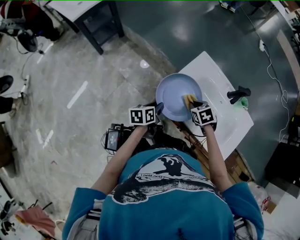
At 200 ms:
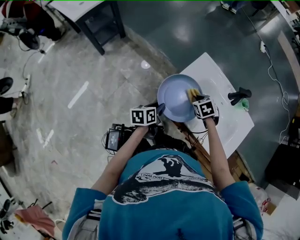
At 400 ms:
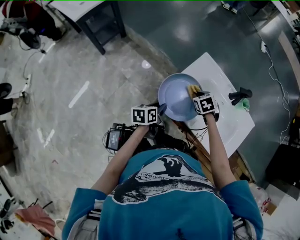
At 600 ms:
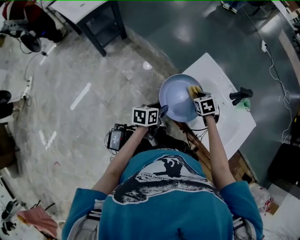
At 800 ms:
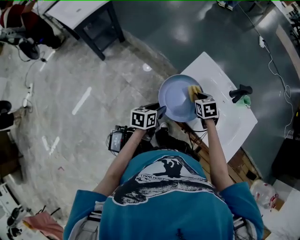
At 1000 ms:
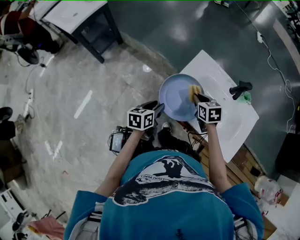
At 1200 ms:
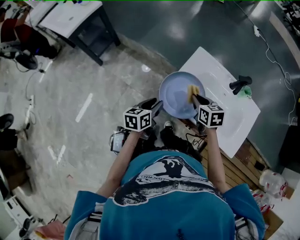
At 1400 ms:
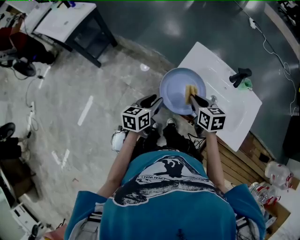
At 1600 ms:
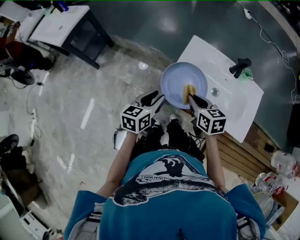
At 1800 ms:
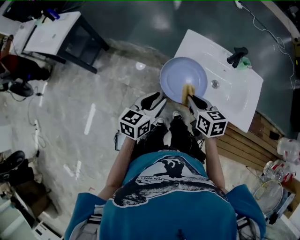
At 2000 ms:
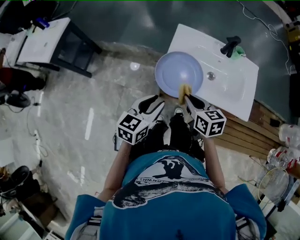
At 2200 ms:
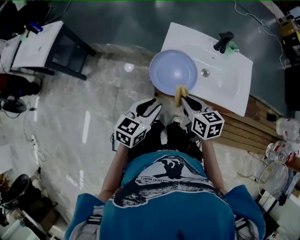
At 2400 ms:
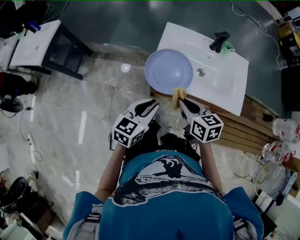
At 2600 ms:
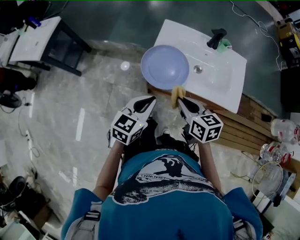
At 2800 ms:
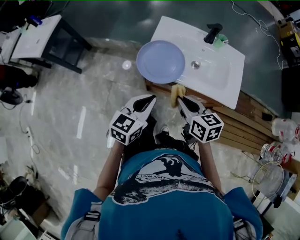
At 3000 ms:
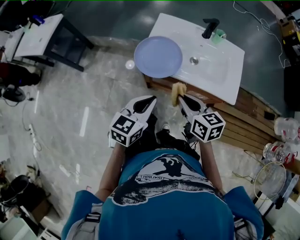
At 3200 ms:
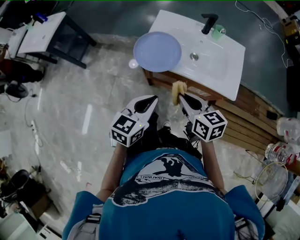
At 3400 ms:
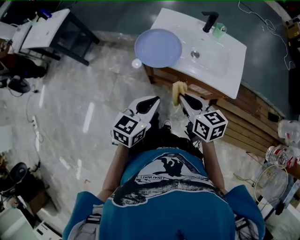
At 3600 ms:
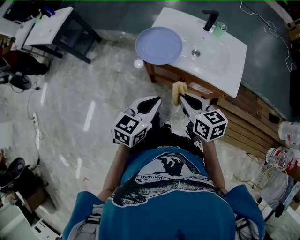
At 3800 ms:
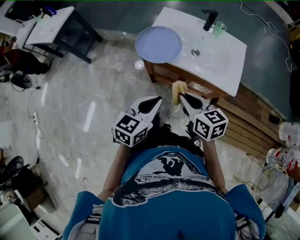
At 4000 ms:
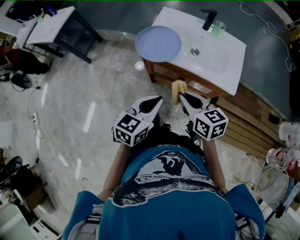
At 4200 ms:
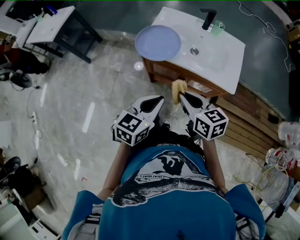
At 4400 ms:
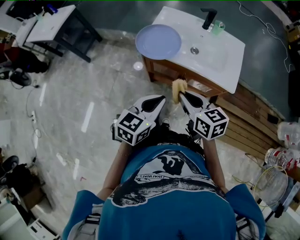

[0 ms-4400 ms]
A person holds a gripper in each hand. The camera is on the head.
0 ms to 1400 ms: The right gripper is displaced upward and to the left by about 10 cm, and turns by about 40 degrees. Meanwhile the left gripper goes approximately 10 cm upward, and rotates some 20 degrees.
1400 ms to 3000 ms: The right gripper heads backward, covering roughly 20 cm. Meanwhile the left gripper is displaced backward, to the right and upward by roughly 20 cm, changes its angle by approximately 30 degrees, and closes its fingers.
3000 ms to 4400 ms: The right gripper goes about 10 cm backward. Meanwhile the left gripper heads backward and to the right, covering roughly 10 cm.

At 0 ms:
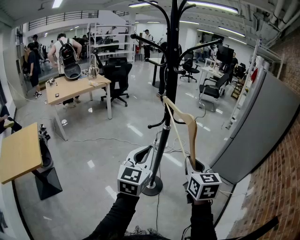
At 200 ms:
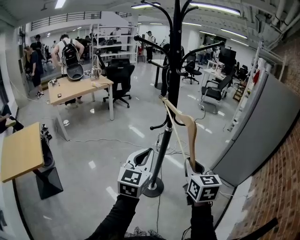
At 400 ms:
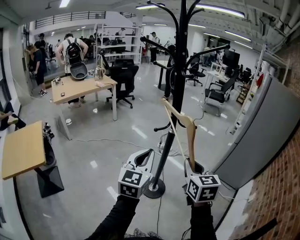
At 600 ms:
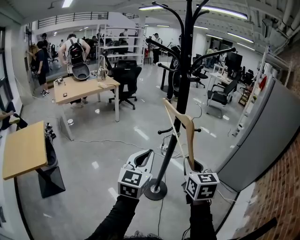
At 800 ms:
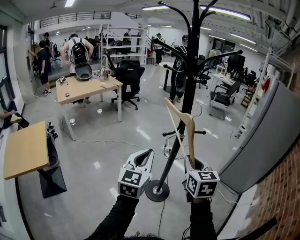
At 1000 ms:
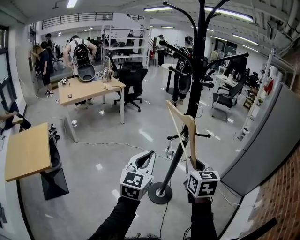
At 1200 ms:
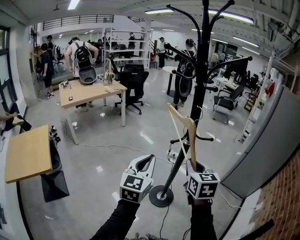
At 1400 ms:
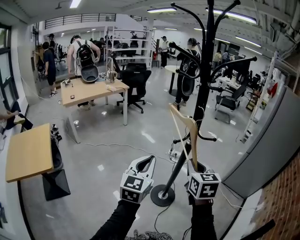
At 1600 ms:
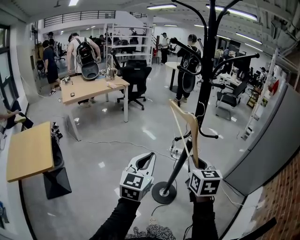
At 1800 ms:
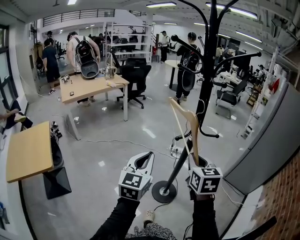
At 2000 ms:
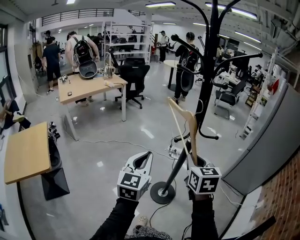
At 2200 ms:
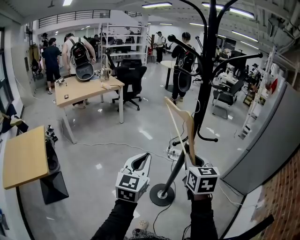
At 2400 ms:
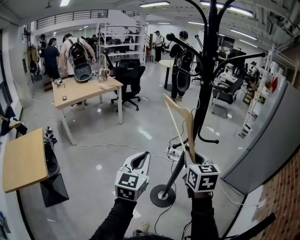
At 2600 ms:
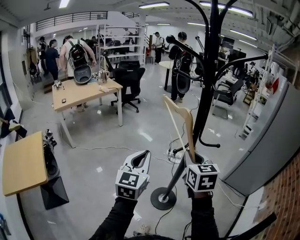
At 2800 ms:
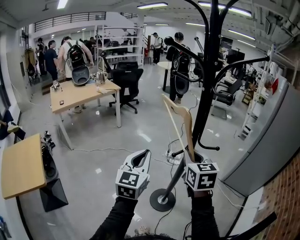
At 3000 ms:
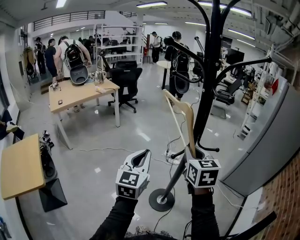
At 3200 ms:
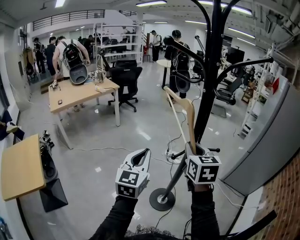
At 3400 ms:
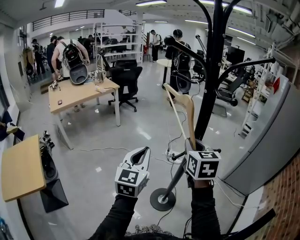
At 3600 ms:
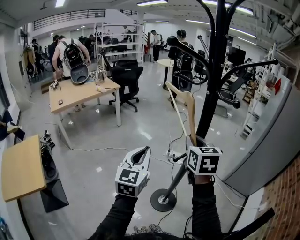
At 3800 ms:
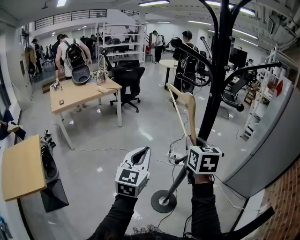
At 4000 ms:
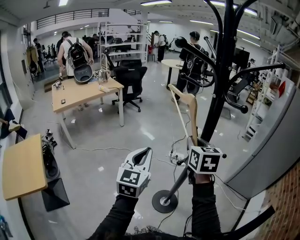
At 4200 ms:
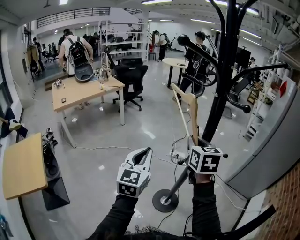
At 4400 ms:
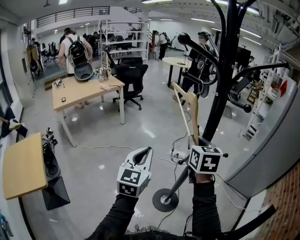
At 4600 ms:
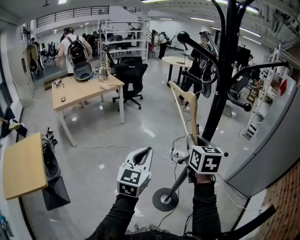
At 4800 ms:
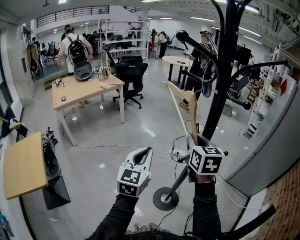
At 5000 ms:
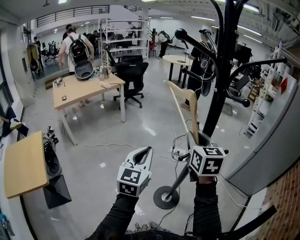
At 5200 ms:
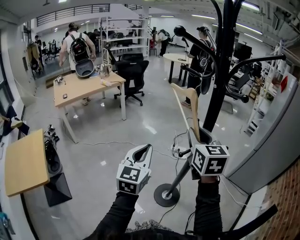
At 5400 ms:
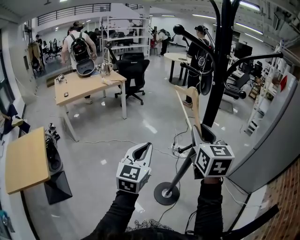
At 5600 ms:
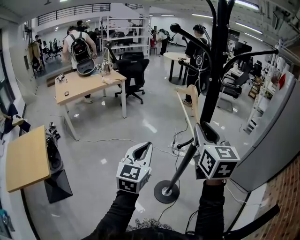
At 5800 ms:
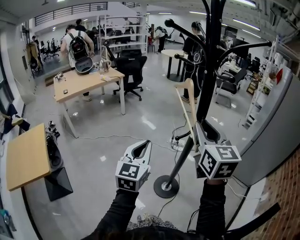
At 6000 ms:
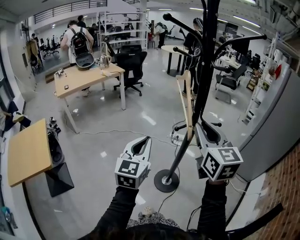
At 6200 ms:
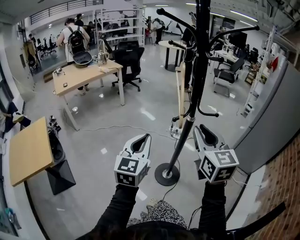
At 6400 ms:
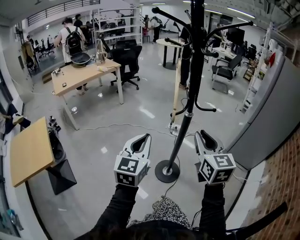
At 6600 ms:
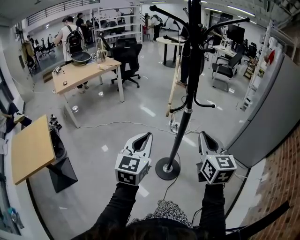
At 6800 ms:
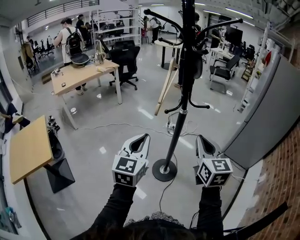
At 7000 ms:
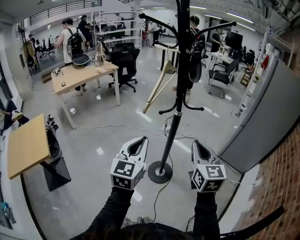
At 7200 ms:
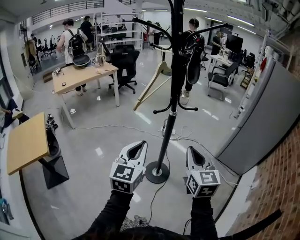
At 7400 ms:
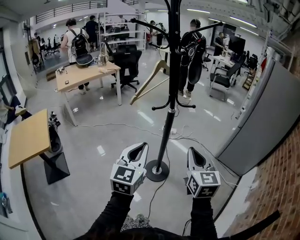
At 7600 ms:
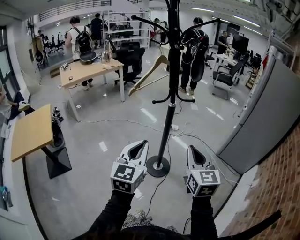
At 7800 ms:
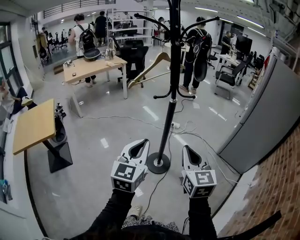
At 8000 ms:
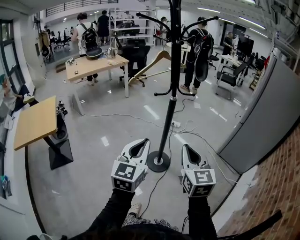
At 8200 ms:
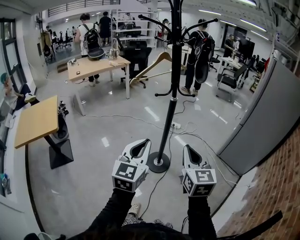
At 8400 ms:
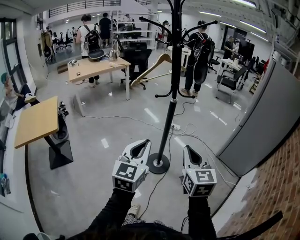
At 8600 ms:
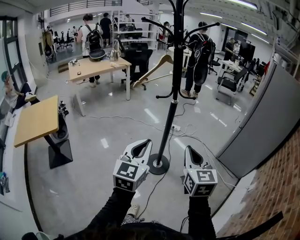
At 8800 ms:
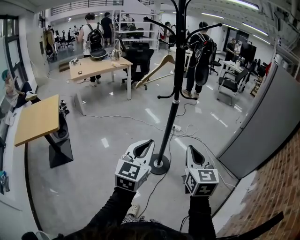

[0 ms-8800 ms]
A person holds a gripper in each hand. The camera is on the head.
0 ms to 1400 ms: The left gripper goes roughly 10 cm to the left; the right gripper moves to the left and forward, about 15 cm.
1400 ms to 3000 ms: The two grippers go approximately 15 cm forward.
3000 ms to 4400 ms: The right gripper is displaced forward by roughly 10 cm.
4400 ms to 5800 ms: The left gripper shifts some 10 cm backward. Meanwhile the right gripper is displaced backward and upward by roughly 15 cm.
5800 ms to 7400 ms: The right gripper goes approximately 25 cm backward, to the right and downward. The left gripper heads backward and to the right, covering about 25 cm.
7400 ms to 8800 ms: Both grippers move backward, about 10 cm.

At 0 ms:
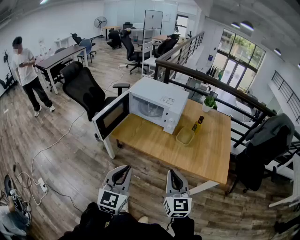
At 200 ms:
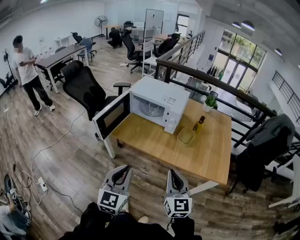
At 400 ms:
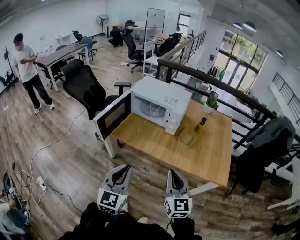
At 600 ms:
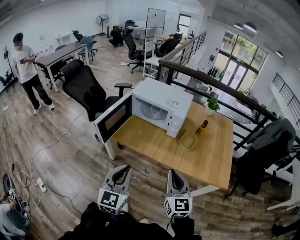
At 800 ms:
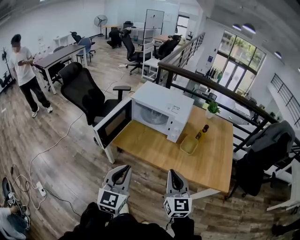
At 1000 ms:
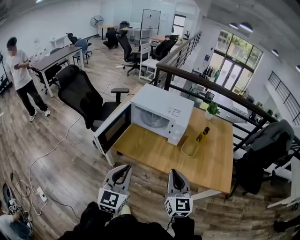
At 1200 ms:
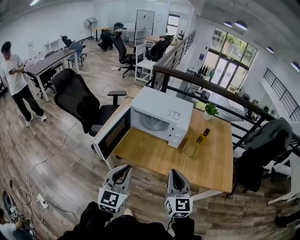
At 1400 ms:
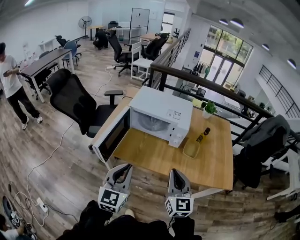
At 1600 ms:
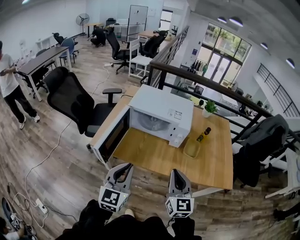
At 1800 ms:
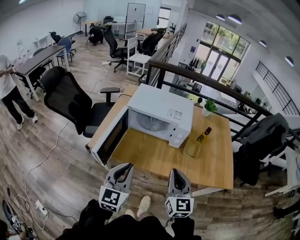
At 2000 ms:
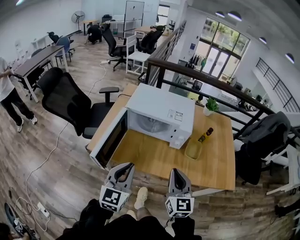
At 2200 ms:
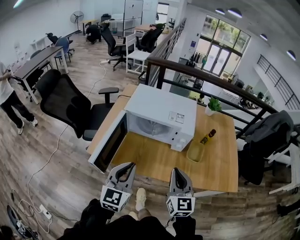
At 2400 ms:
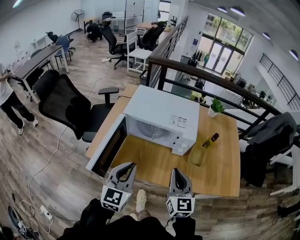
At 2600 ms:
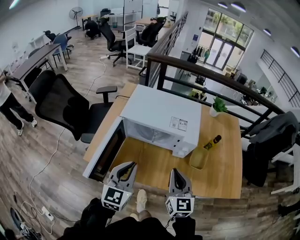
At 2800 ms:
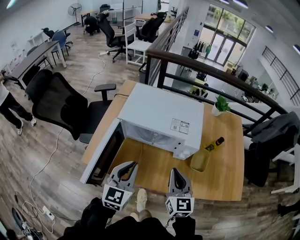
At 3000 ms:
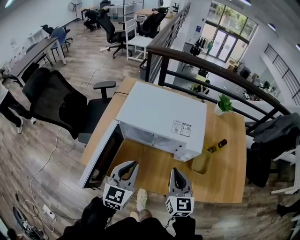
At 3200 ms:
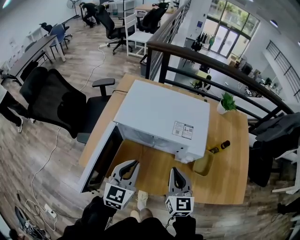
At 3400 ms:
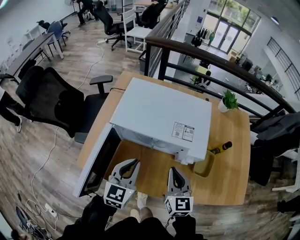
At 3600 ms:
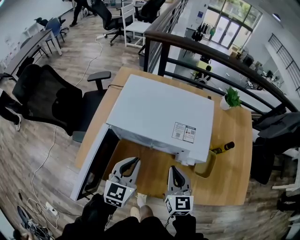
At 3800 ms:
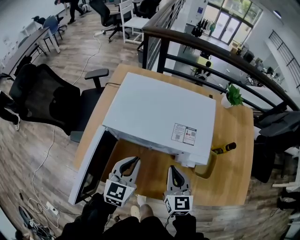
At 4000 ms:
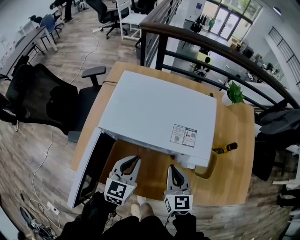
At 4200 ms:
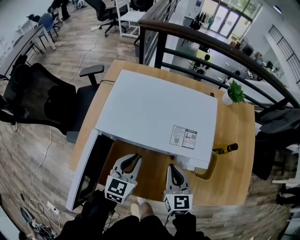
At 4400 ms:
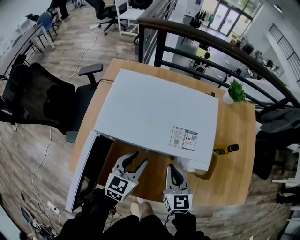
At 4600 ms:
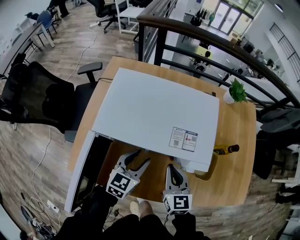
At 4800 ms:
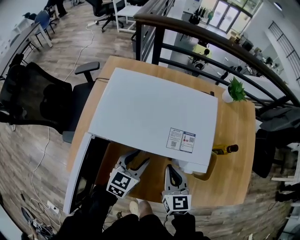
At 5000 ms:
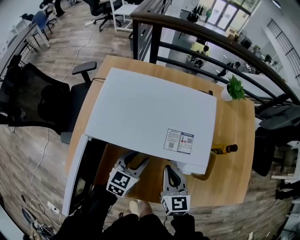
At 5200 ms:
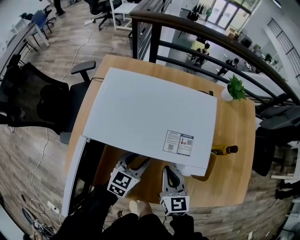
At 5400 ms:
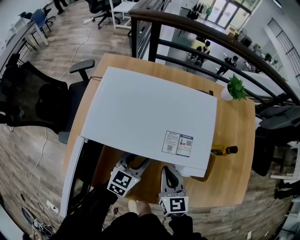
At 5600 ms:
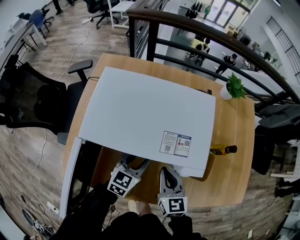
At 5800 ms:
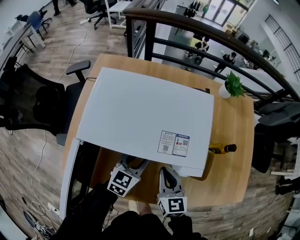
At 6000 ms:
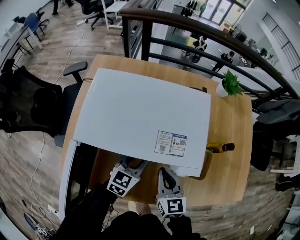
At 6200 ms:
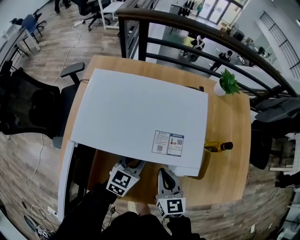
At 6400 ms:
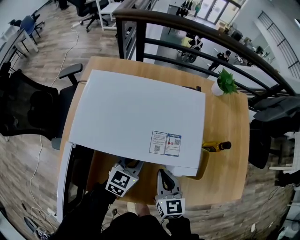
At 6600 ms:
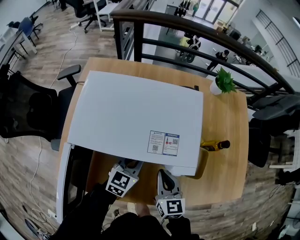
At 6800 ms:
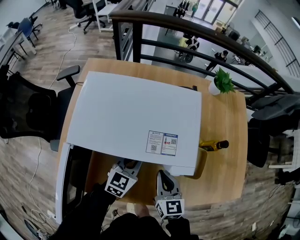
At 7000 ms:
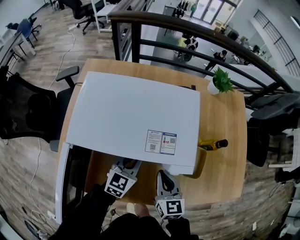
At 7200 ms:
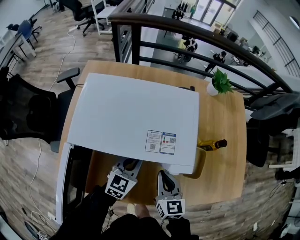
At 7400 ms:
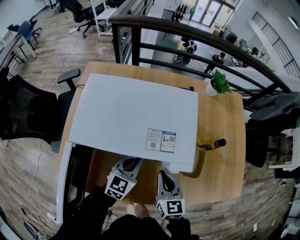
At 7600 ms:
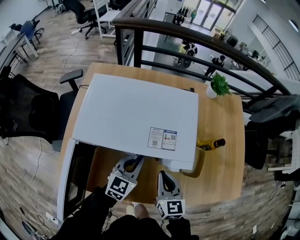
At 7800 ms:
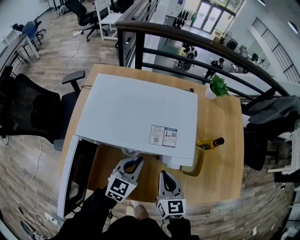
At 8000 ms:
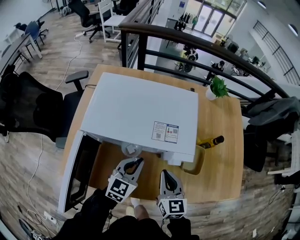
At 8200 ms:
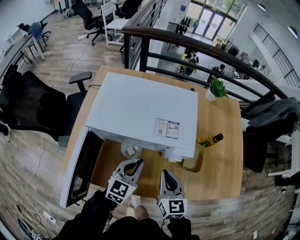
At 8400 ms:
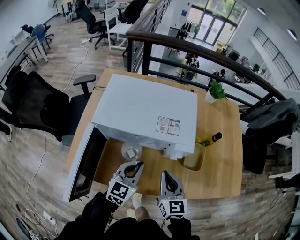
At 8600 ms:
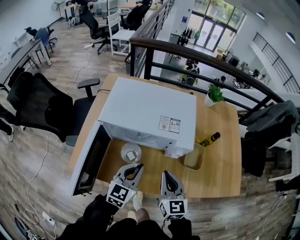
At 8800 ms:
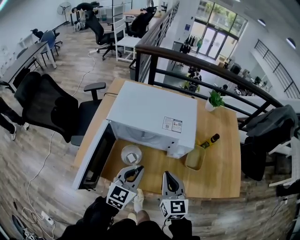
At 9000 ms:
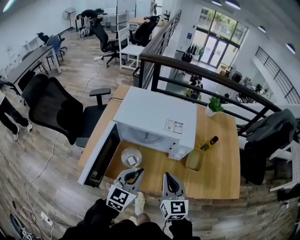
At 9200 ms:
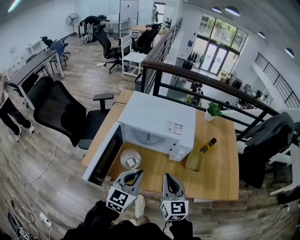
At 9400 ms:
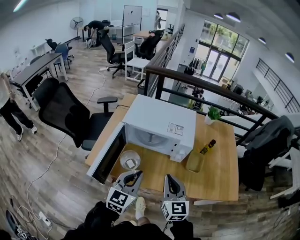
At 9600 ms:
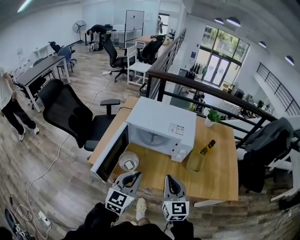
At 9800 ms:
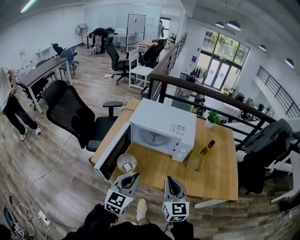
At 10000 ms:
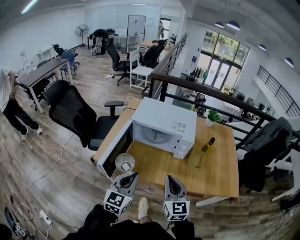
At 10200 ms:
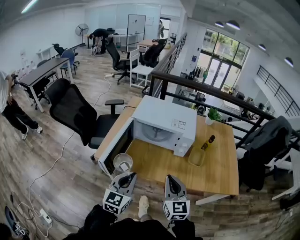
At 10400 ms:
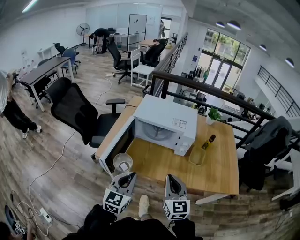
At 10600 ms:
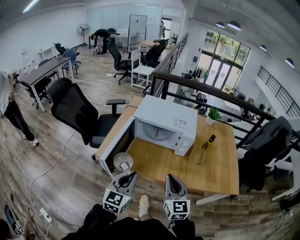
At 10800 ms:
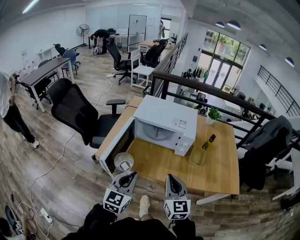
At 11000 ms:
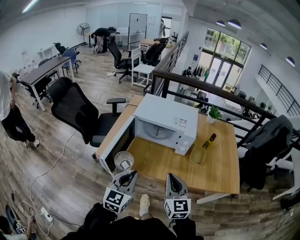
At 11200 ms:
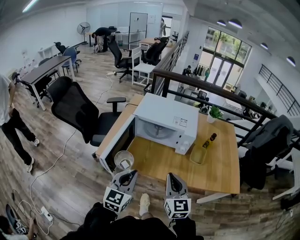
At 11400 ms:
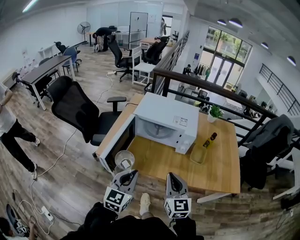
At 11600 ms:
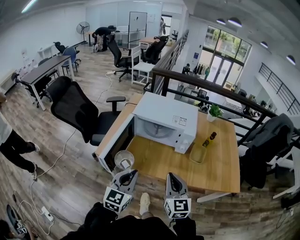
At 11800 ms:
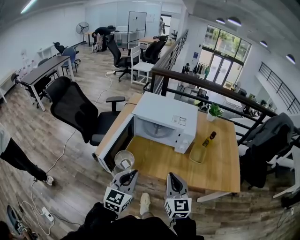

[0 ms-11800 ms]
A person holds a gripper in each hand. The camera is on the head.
0 ms to 1400 ms: The grippers both shift forward and to the left by approximately 20 cm.
1400 ms to 3000 ms: The grippers both shift forward by approximately 25 cm.
3000 ms to 4400 ms: Both grippers move forward and downward, roughly 15 cm. The left gripper opens up.
4400 ms to 6000 ms: The left gripper heads to the right and downward, covering roughly 10 cm.
6000 ms to 7400 ms: The left gripper closes up.
7400 ms to 8800 ms: The two grippers go roughly 20 cm backward and upward.
8800 ms to 10400 ms: The right gripper goes some 20 cm backward and upward. Meanwhile the left gripper travels backward by some 25 cm.
10400 ms to 11800 ms: There are only small adjustments of the grippers.
